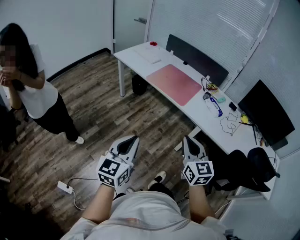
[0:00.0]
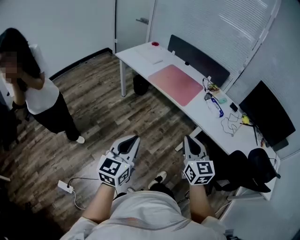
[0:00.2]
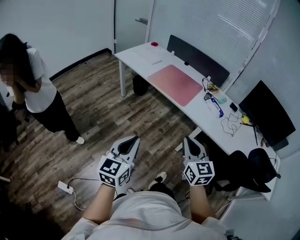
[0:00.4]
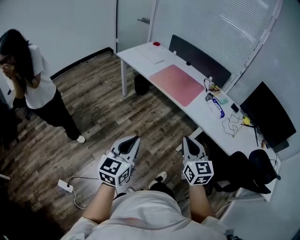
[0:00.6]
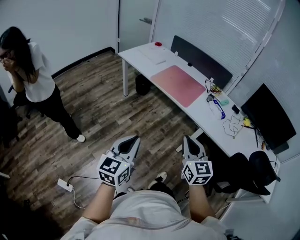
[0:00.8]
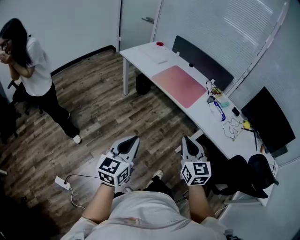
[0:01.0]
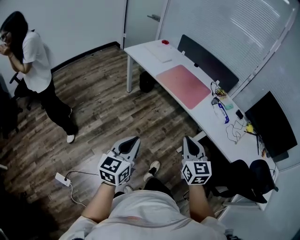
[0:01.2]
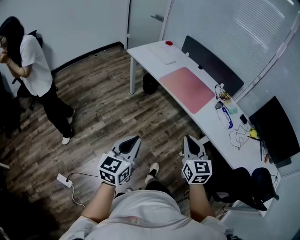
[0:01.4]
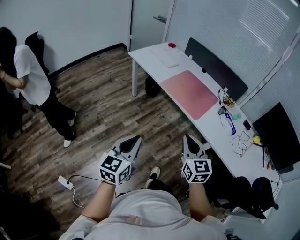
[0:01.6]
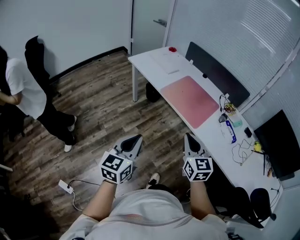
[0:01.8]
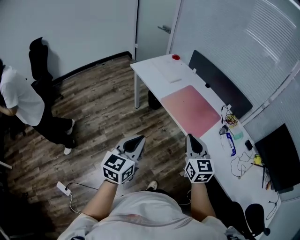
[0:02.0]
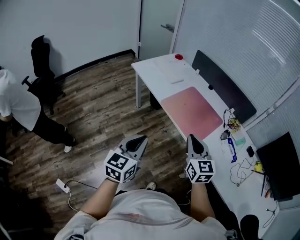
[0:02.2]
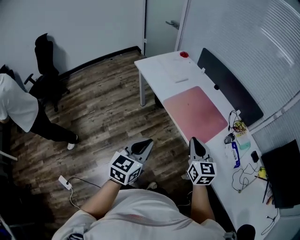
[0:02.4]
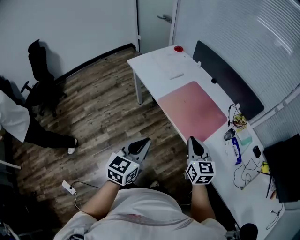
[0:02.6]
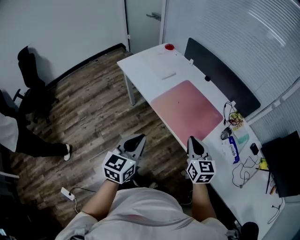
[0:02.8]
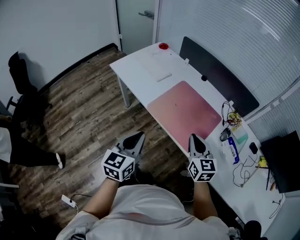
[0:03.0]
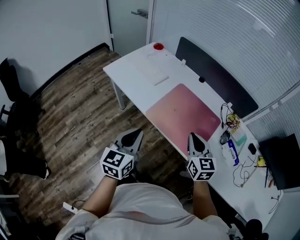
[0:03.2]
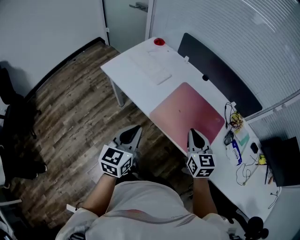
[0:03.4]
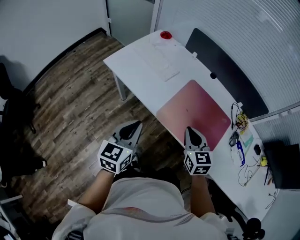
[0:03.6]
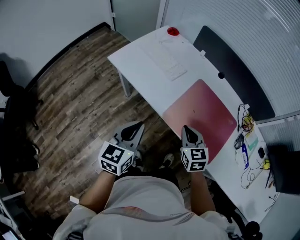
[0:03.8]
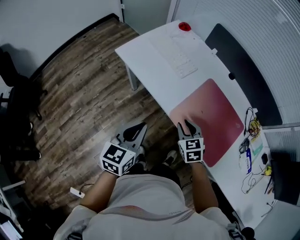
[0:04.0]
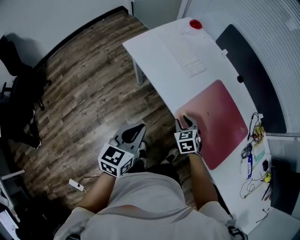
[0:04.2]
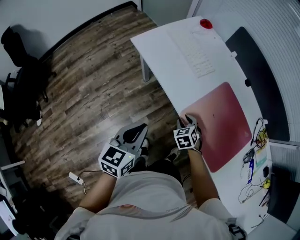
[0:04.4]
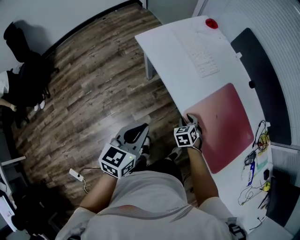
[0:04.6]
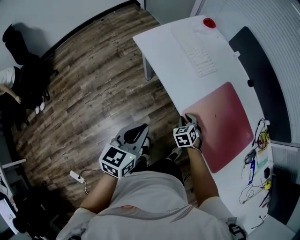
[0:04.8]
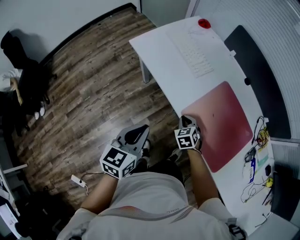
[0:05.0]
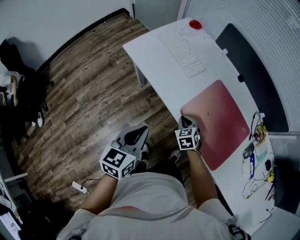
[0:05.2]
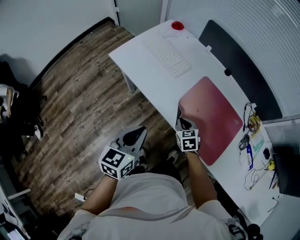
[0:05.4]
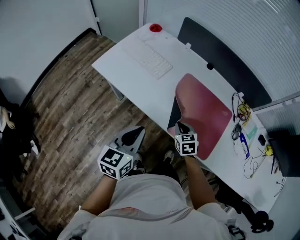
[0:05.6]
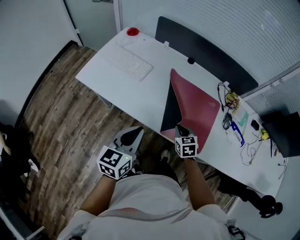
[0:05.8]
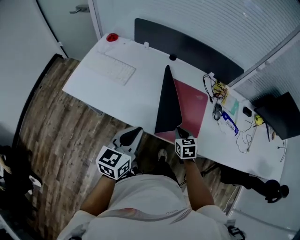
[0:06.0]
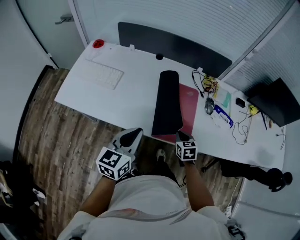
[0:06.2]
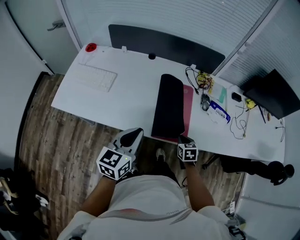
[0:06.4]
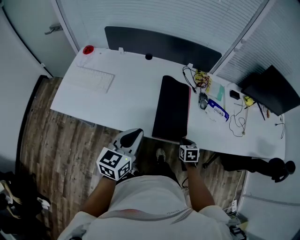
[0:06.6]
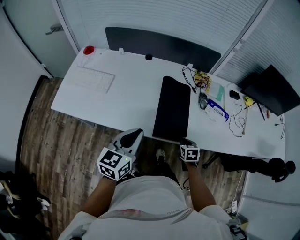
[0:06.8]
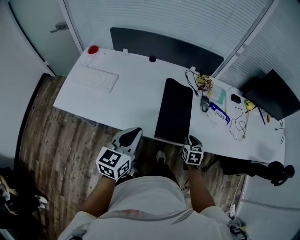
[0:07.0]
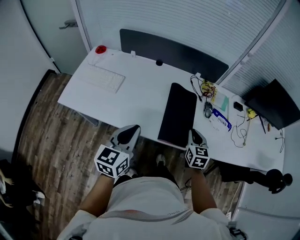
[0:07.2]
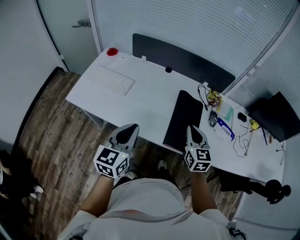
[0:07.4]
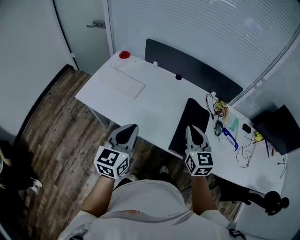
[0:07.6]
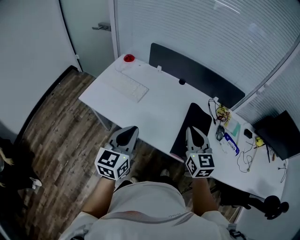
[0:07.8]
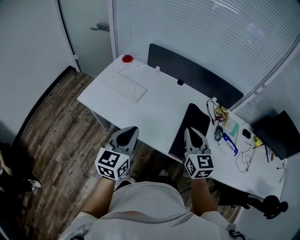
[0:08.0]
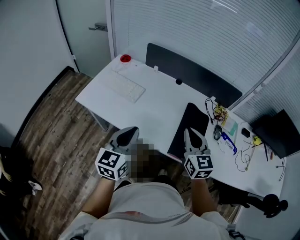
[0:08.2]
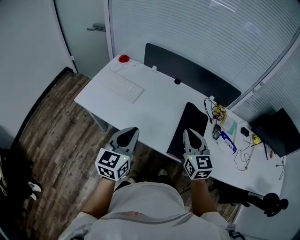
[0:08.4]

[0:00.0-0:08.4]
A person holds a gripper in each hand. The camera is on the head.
0:00.0 to 0:01.4: Both grippers travel together forward, approximately 5 cm.
0:01.4 to 0:02.8: Both grippers travel together forward, roughly 30 cm.
0:02.8 to 0:04.2: The right gripper moves to the left, forward and downward, about 40 cm, tips its fingers downward by roughly 30 degrees, and opens its fingers. The left gripper travels forward, to the left and downward by approximately 30 cm.
0:04.2 to 0:05.6: Both grippers move to the right, roughly 10 cm. The right gripper changes its angle by about 20 degrees, and closes its fingers.
0:05.6 to 0:07.0: The left gripper ends up roughly 15 cm from where it was, and rotates about 20 degrees. The right gripper ends up some 30 cm from where it was, and changes its angle by roughly 40 degrees.
0:07.0 to 0:08.4: The left gripper moves roughly 10 cm; the right gripper shifts about 25 cm upward, and tips its fingers upward by approximately 30 degrees.

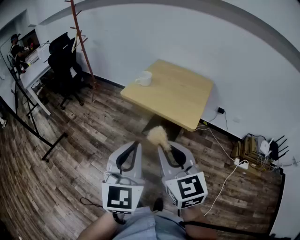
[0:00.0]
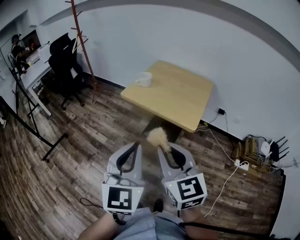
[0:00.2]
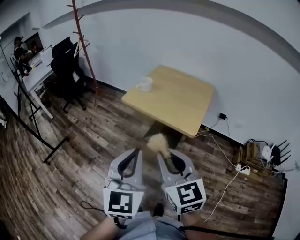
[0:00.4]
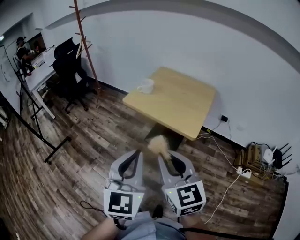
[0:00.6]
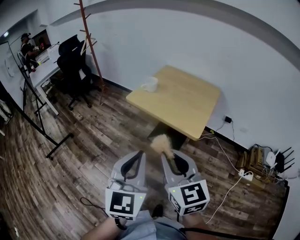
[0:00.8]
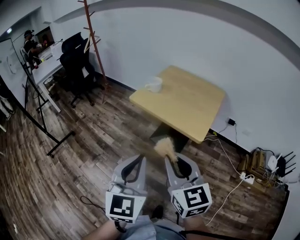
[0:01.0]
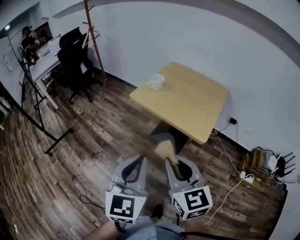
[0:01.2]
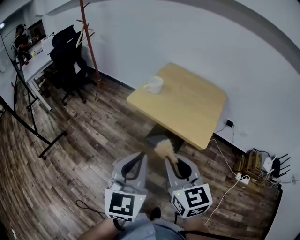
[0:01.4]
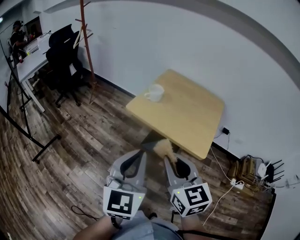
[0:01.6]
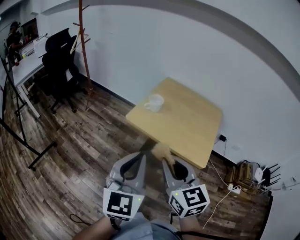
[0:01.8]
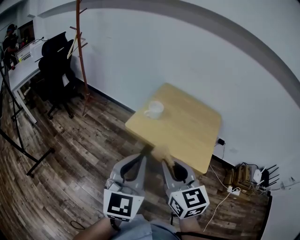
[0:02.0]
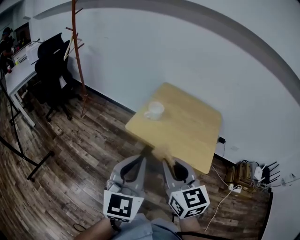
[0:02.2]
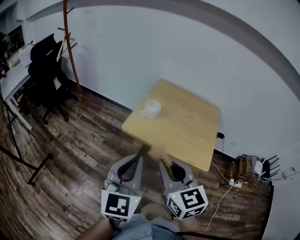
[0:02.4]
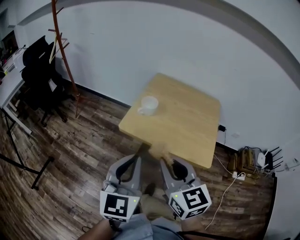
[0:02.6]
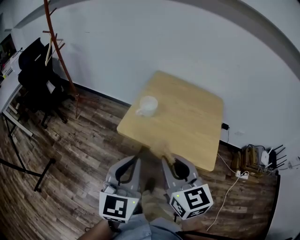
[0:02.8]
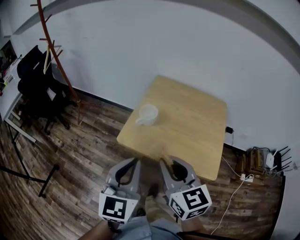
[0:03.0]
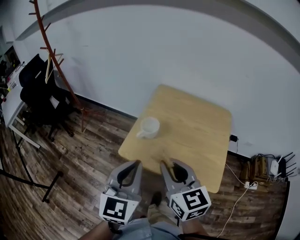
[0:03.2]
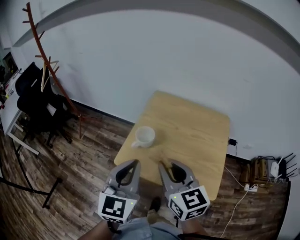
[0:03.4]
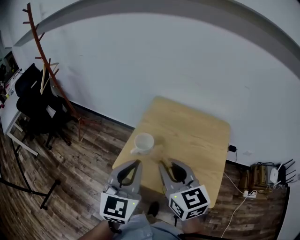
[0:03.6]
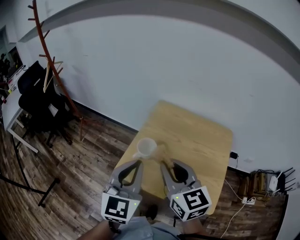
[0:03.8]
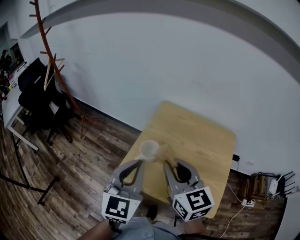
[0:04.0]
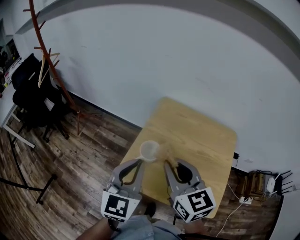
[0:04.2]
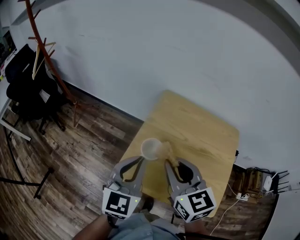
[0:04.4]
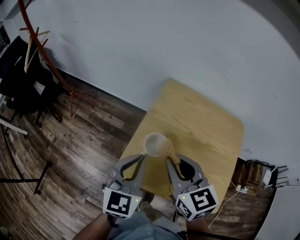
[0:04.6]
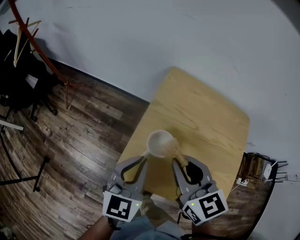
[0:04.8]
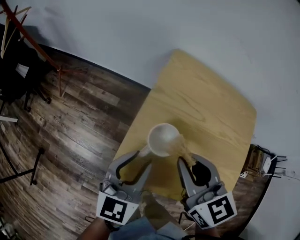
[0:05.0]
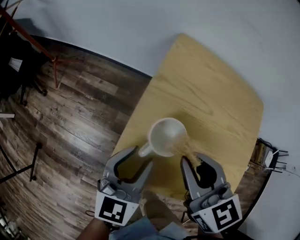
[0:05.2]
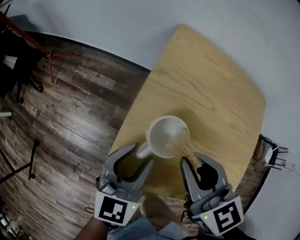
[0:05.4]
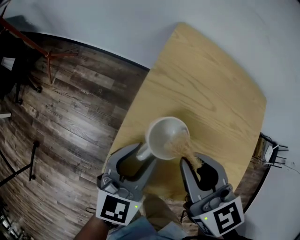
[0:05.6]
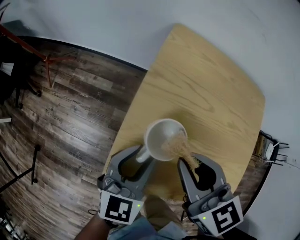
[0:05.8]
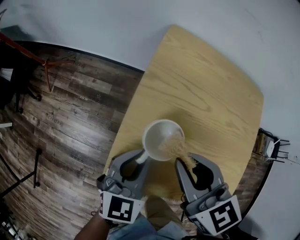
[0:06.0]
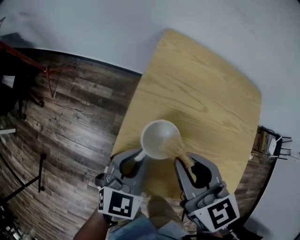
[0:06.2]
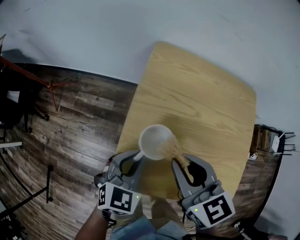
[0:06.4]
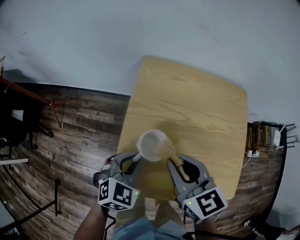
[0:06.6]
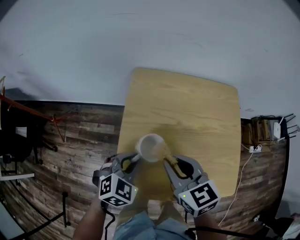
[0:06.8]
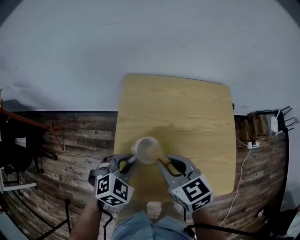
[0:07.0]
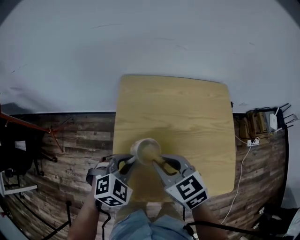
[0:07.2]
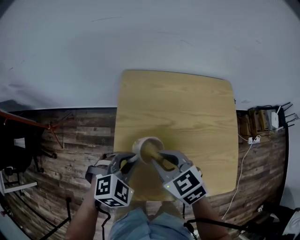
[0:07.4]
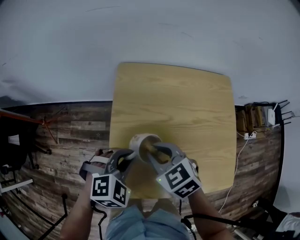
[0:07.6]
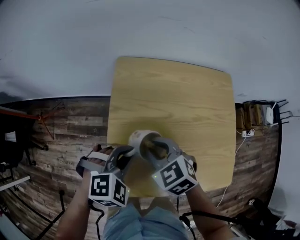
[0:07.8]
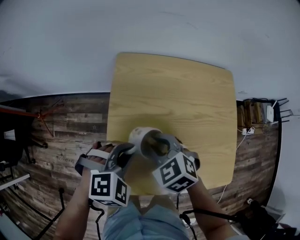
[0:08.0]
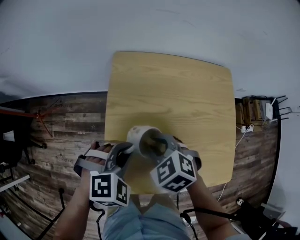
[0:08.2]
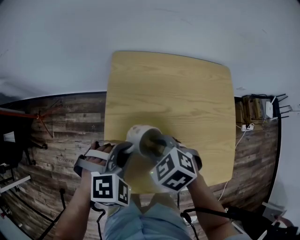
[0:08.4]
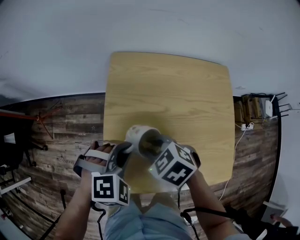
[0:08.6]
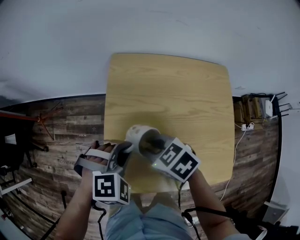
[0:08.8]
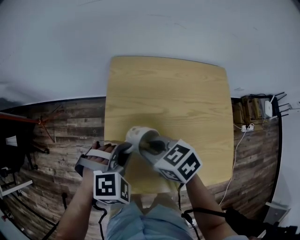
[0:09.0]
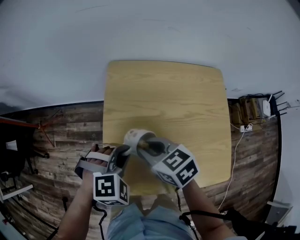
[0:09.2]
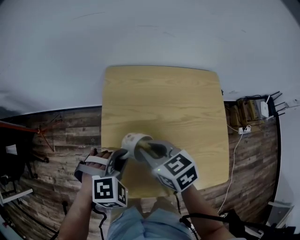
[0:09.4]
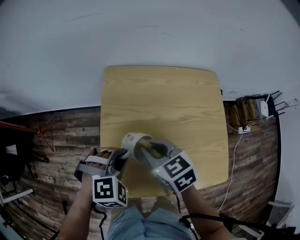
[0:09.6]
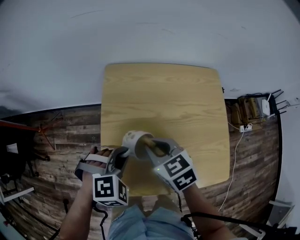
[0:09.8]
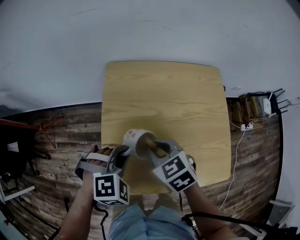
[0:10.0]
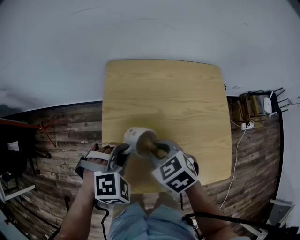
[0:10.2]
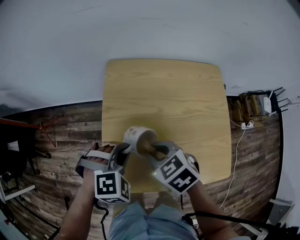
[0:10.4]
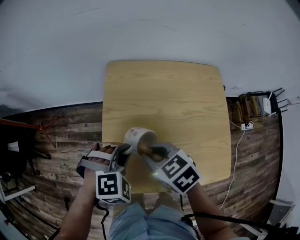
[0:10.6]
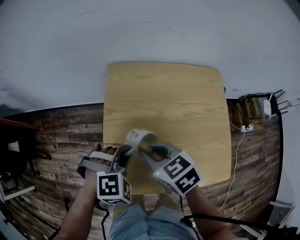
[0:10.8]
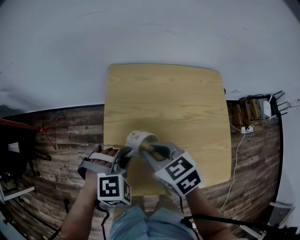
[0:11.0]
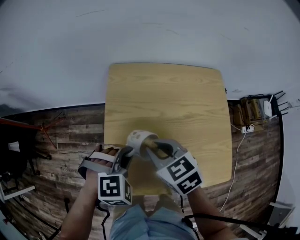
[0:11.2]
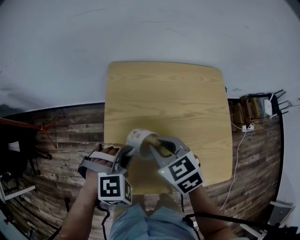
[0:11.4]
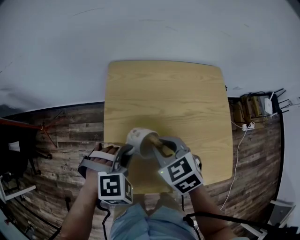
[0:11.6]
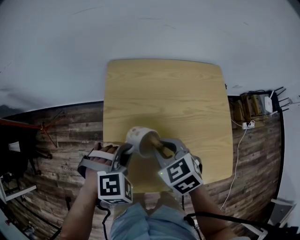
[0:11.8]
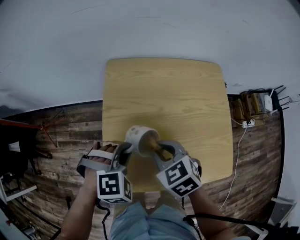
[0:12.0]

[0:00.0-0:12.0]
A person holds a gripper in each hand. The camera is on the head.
0:00.0 to 0:01.6: Both grippers move forward, roughly 15 cm.
0:01.6 to 0:03.0: The grippers both shift forward by approximately 20 cm.
0:03.0 to 0:04.4: Both grippers move forward, about 20 cm.
0:04.4 to 0:06.0: The left gripper travels downward by roughly 20 cm, swivels roughly 20 degrees, and opens, then closes once more, while the right gripper moves downward, roughly 15 cm.
0:06.0 to 0:07.6: The left gripper goes about 5 cm forward, and rolls clockwise, seen from behind, by some 50 degrees. Meanwhile the right gripper changes place by some 5 cm.
0:10.4 to 0:12.0: There are only small adjustments of the grippers.

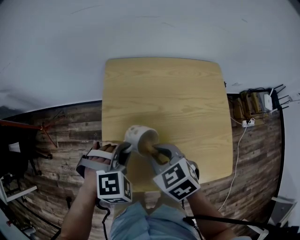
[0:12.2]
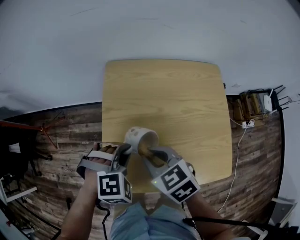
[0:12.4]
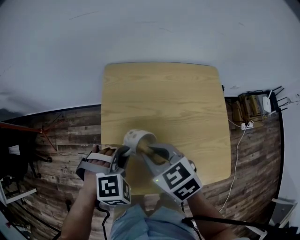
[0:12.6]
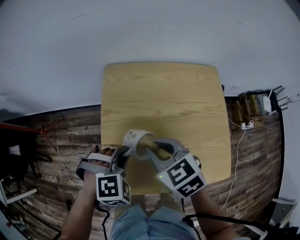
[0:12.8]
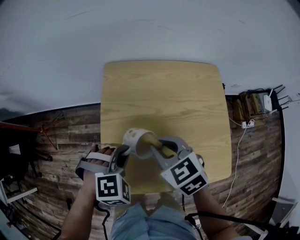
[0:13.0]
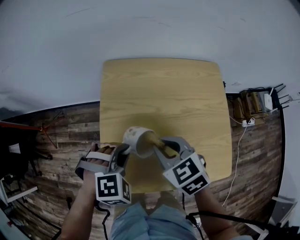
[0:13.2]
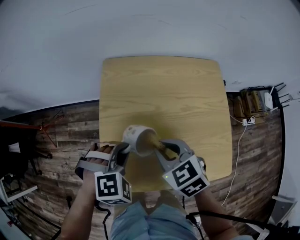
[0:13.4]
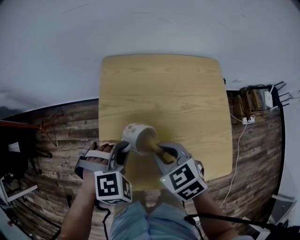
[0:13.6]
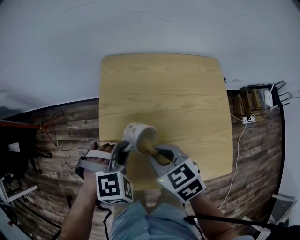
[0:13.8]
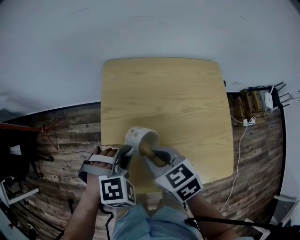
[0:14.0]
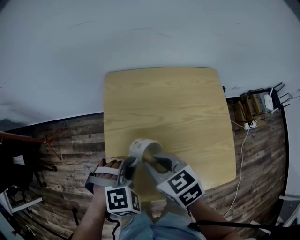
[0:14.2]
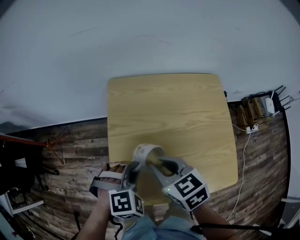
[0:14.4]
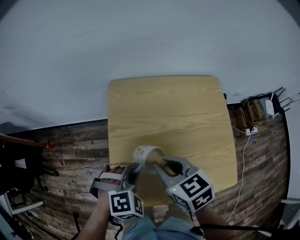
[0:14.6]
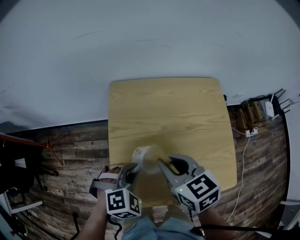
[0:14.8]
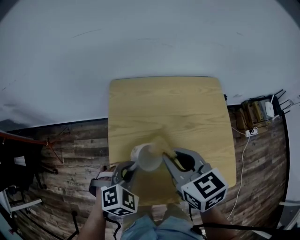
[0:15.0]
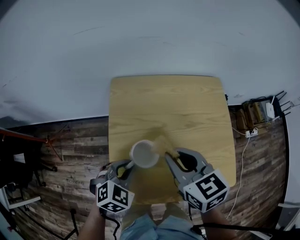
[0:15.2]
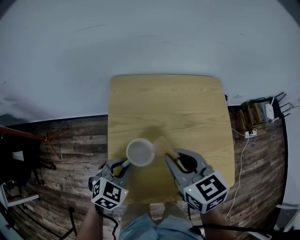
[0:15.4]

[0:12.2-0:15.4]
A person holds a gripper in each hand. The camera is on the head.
0:12.2 to 0:13.8: The grippers stay close to where they were, moving slightly.
0:13.8 to 0:15.4: The left gripper rotates some 40 degrees. The right gripper shifts roughly 10 cm upward.
